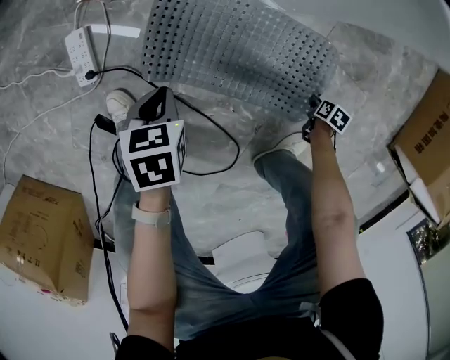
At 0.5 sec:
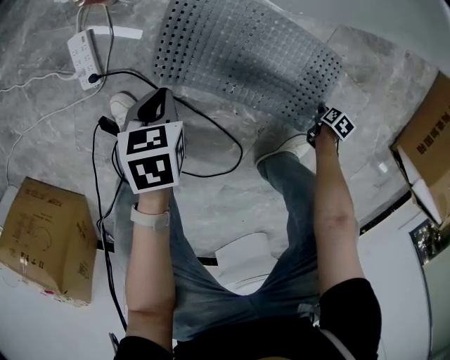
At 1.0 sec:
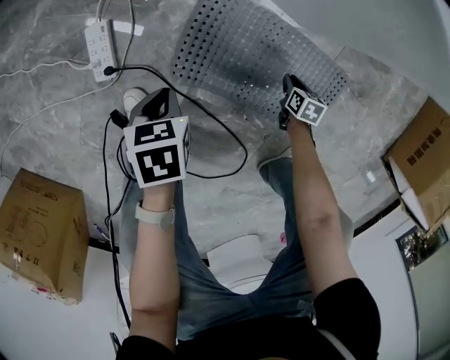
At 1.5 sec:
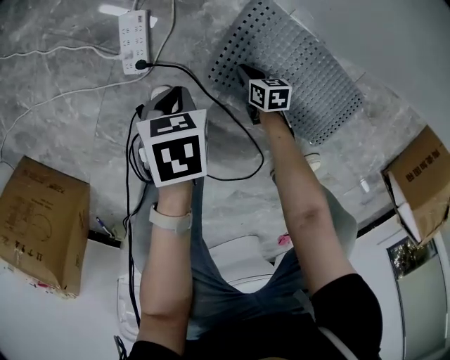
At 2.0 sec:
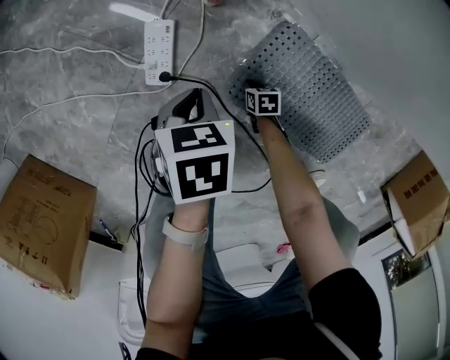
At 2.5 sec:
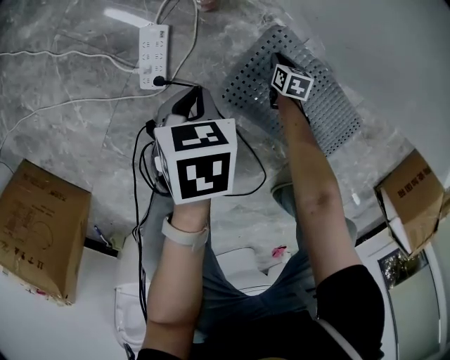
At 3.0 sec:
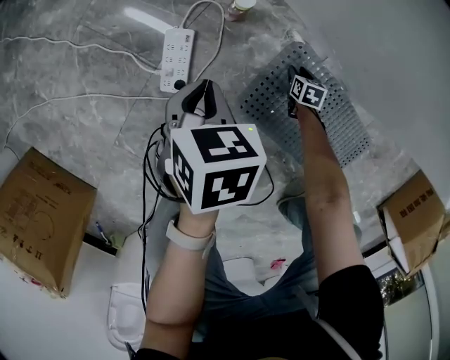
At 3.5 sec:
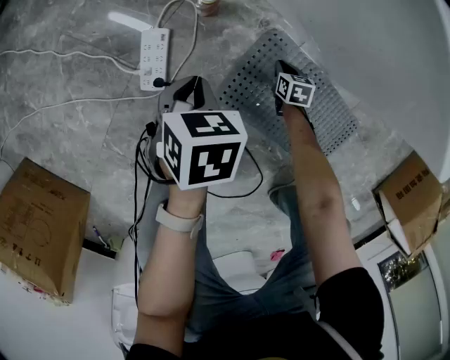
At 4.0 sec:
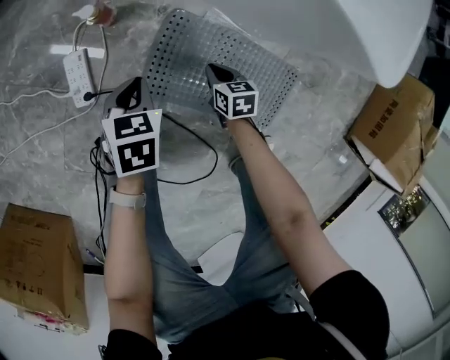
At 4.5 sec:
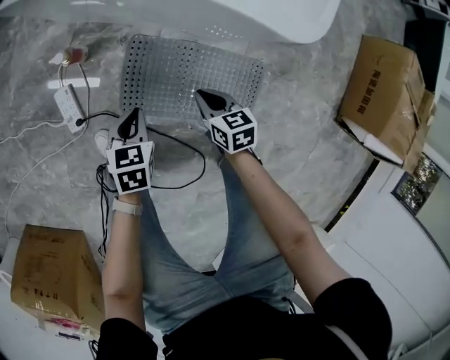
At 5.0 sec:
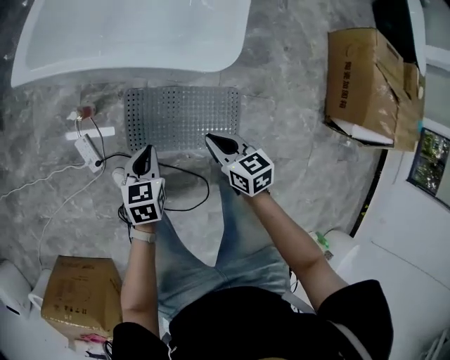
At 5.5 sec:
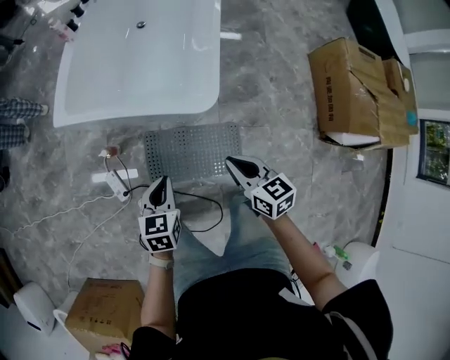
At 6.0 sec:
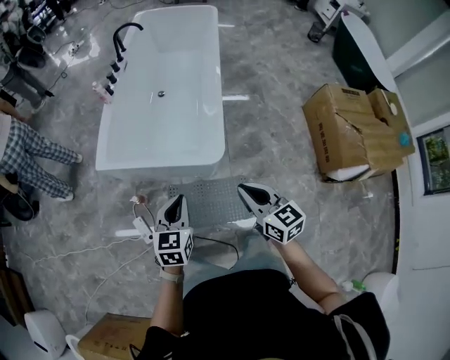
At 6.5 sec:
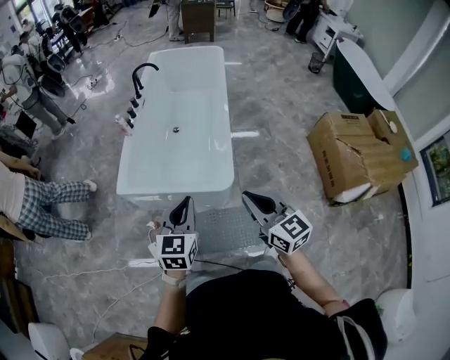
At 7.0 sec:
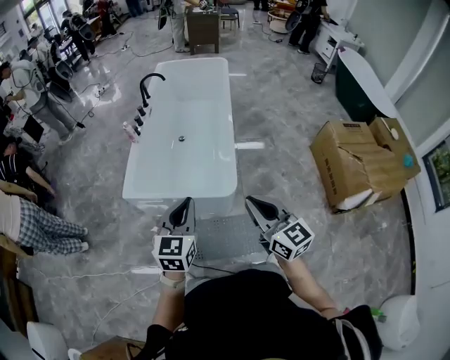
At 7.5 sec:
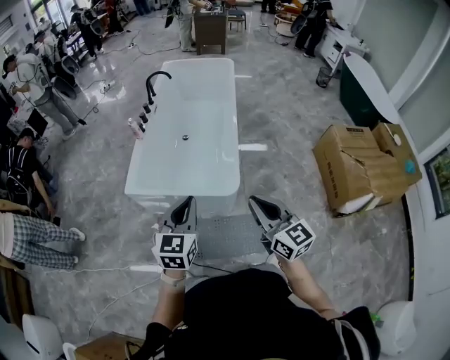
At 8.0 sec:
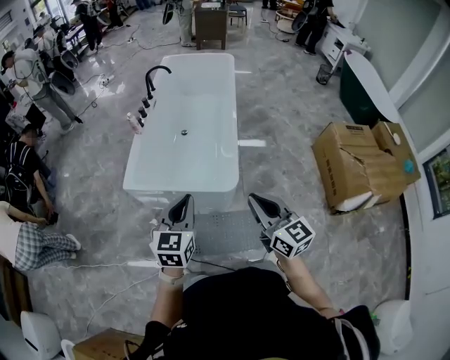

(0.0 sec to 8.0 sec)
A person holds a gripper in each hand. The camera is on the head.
0.0 sec - 2.0 sec: The right gripper ends up some 60 cm from where it was, and rolls counterclockwise, seen from behind, by some 40 degrees. The left gripper changes place by about 25 cm.
2.0 sec - 4.0 sec: The right gripper heads upward and to the right, covering roughly 25 cm, changes its angle by some 20 degrees, and opens, then closes again; the left gripper moves to the right, approximately 15 cm, and rotates about 20 degrees.
4.0 sec - 6.0 sec: Both grippers travel together upward, approximately 70 cm. The left gripper tips its fingers upward by about 30 degrees. The right gripper tips its fingers upward by approximately 40 degrees.
6.0 sec - 8.0 sec: Both grippers move upward, about 15 cm.

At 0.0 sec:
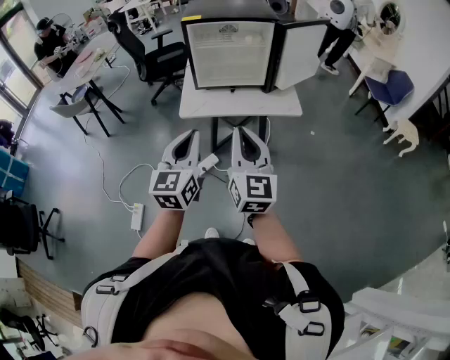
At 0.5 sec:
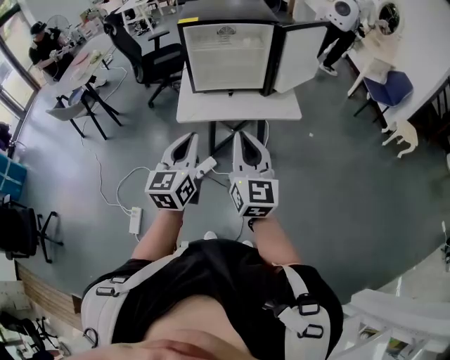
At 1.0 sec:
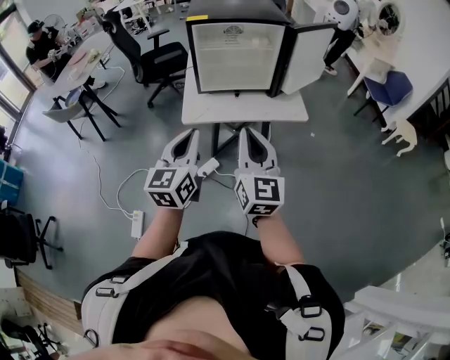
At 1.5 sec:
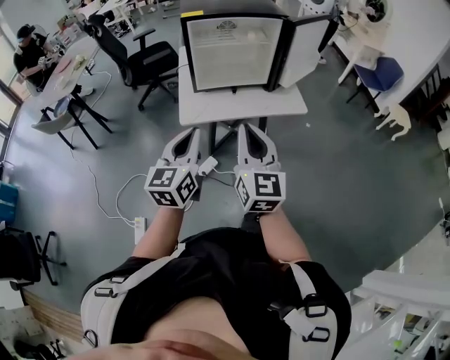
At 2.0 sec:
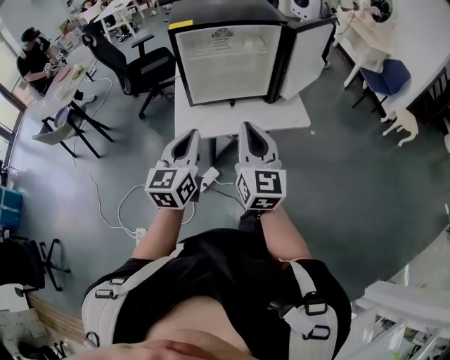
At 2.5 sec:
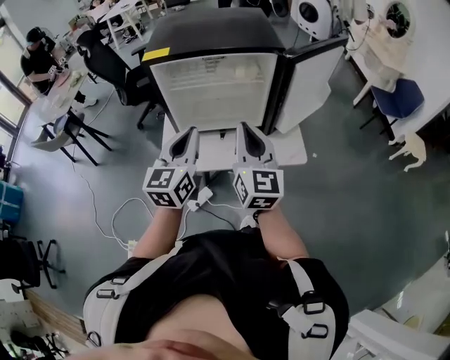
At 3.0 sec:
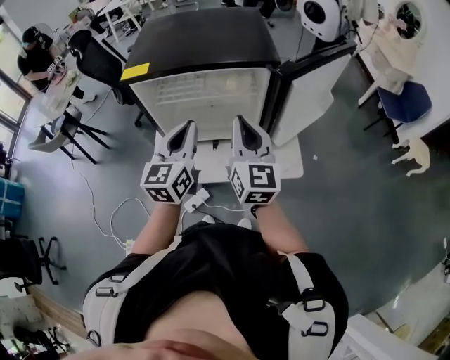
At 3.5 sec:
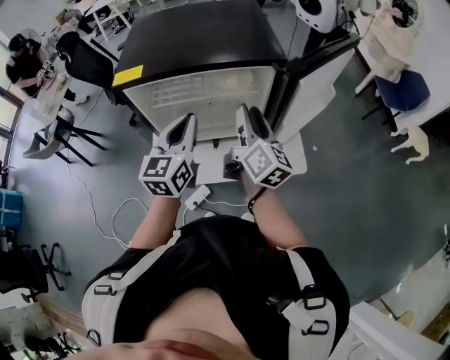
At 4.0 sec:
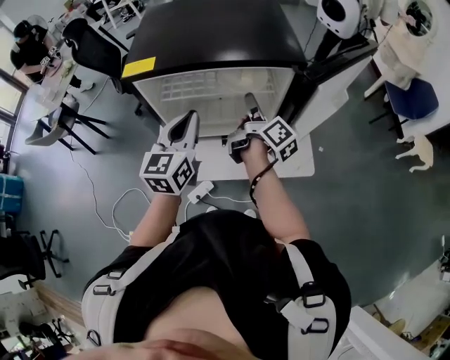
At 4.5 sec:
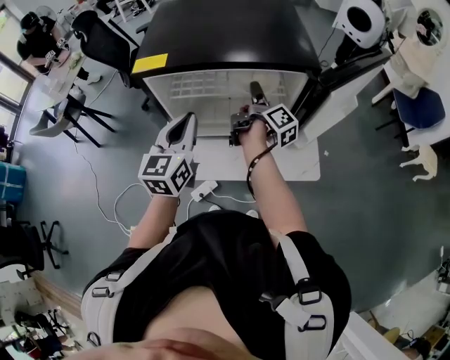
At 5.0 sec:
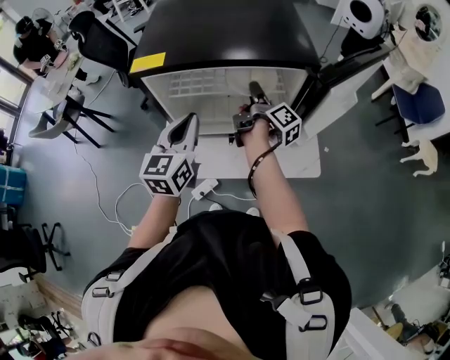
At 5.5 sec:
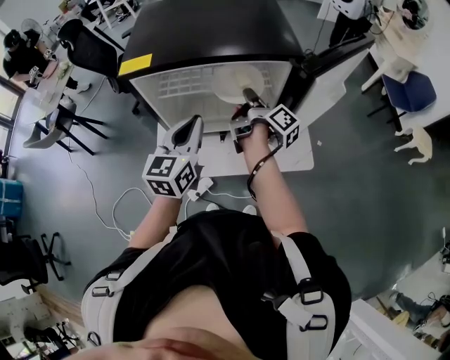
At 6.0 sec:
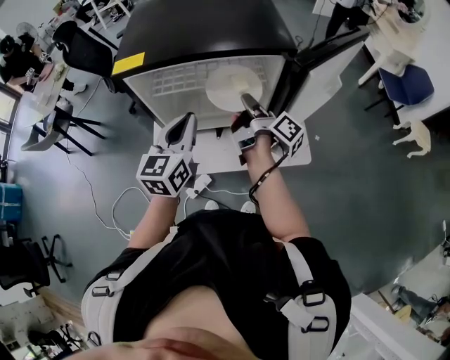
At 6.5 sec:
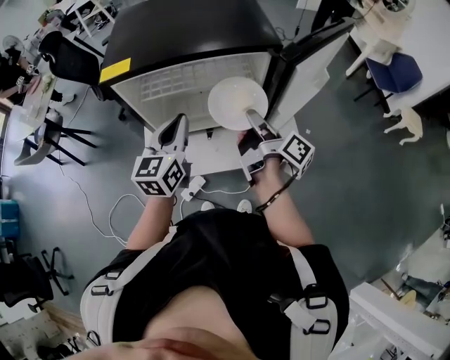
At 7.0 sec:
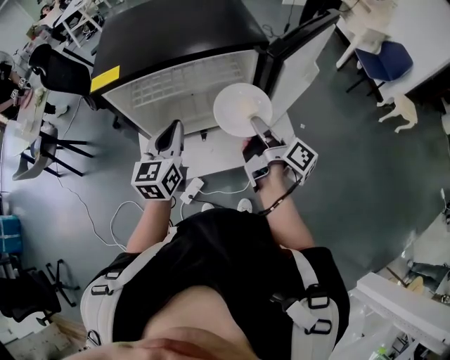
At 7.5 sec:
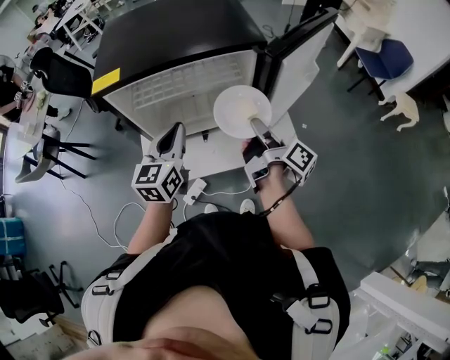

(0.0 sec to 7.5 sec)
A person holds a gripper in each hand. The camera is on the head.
0.0 sec - 2.0 sec: Both grippers move forward, about 15 cm.
2.0 sec - 4.0 sec: The two grippers go about 35 cm forward. The right gripper rotates around the line of its fingers by approximately 70 degrees, clockwise from behind, and opens its fingers.
4.0 sec - 5.5 sec: The right gripper closes its fingers.
5.5 sec - 7.5 sec: The right gripper is displaced backward and to the right by some 15 cm.

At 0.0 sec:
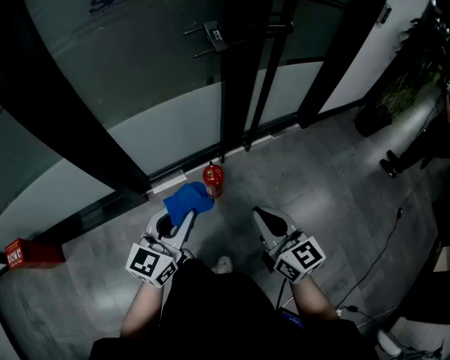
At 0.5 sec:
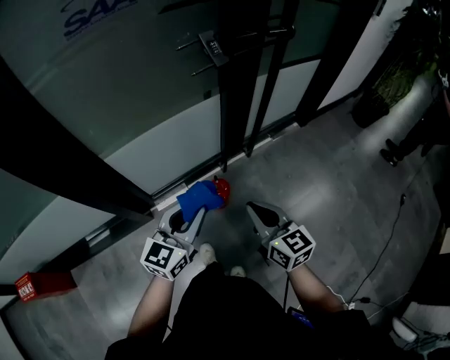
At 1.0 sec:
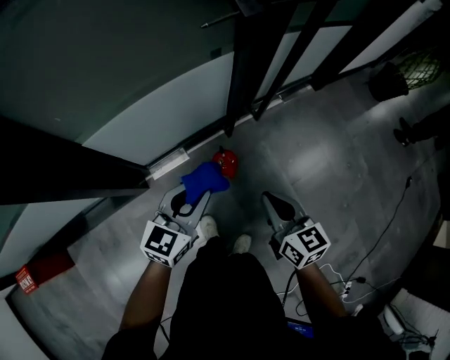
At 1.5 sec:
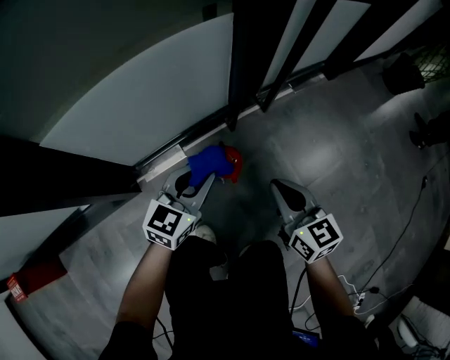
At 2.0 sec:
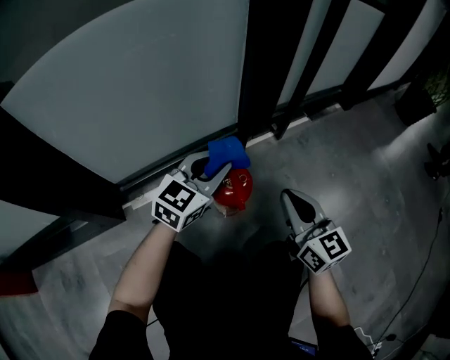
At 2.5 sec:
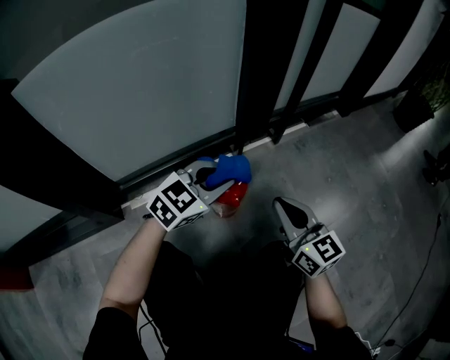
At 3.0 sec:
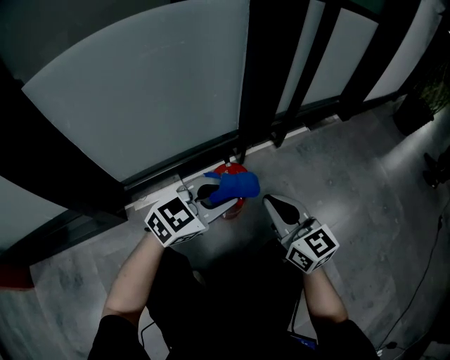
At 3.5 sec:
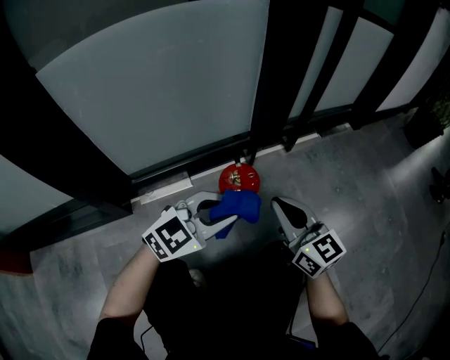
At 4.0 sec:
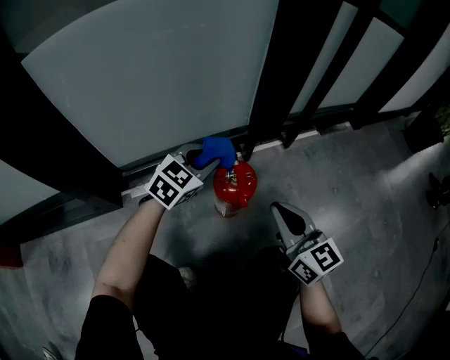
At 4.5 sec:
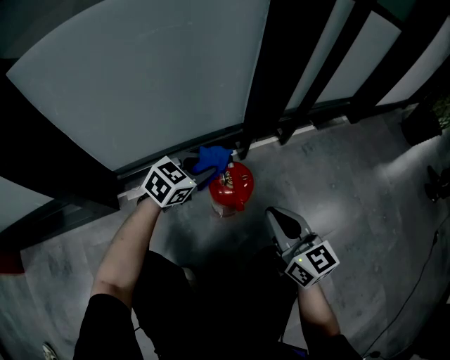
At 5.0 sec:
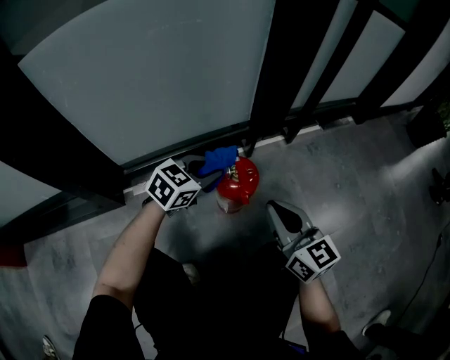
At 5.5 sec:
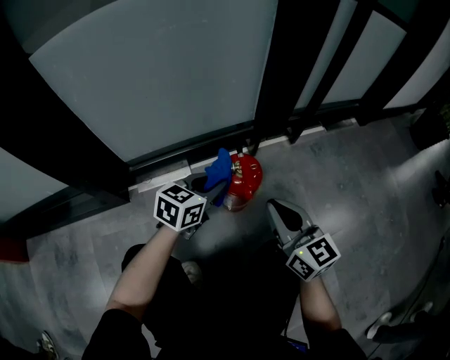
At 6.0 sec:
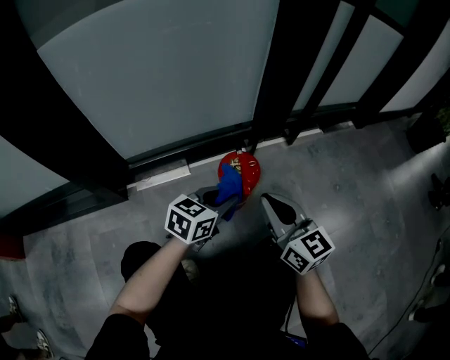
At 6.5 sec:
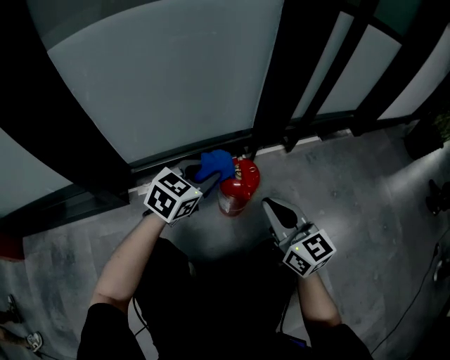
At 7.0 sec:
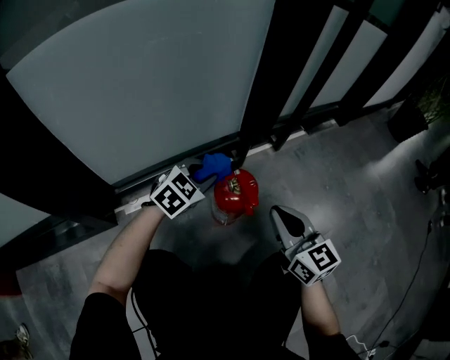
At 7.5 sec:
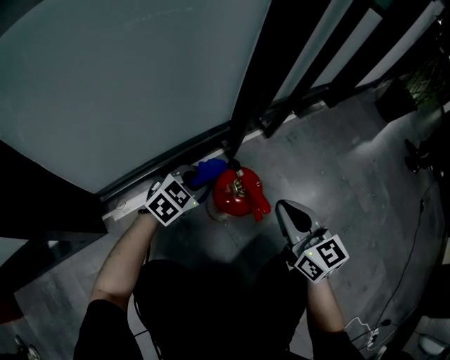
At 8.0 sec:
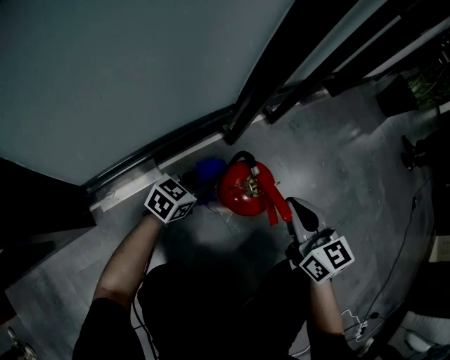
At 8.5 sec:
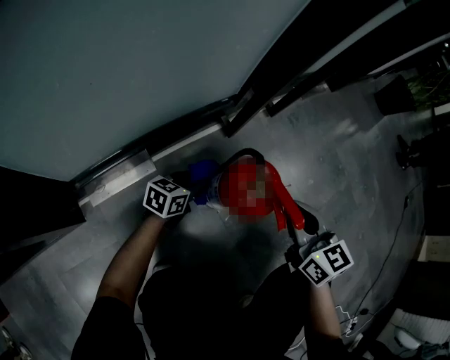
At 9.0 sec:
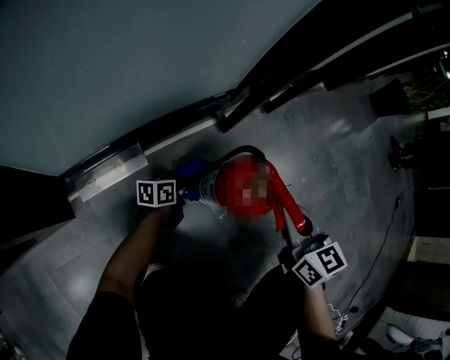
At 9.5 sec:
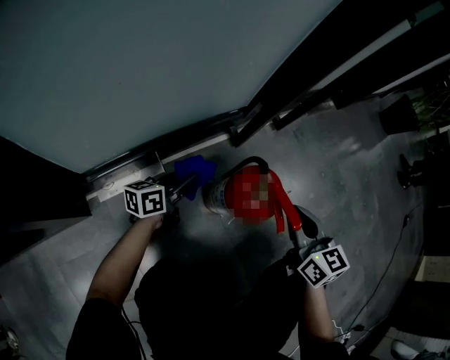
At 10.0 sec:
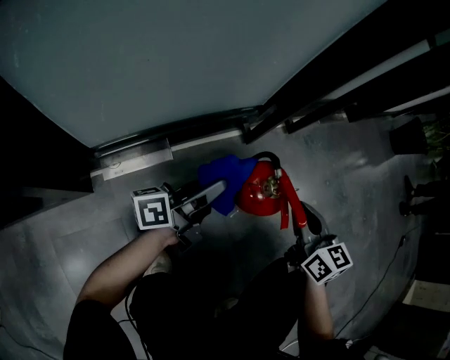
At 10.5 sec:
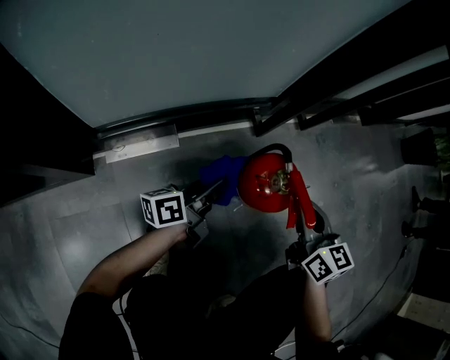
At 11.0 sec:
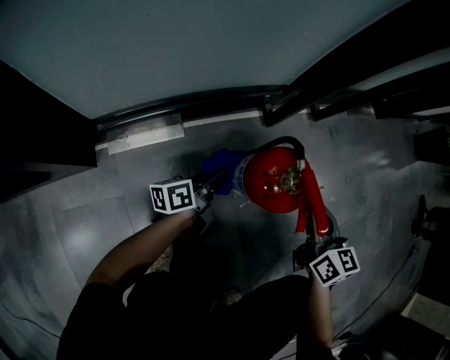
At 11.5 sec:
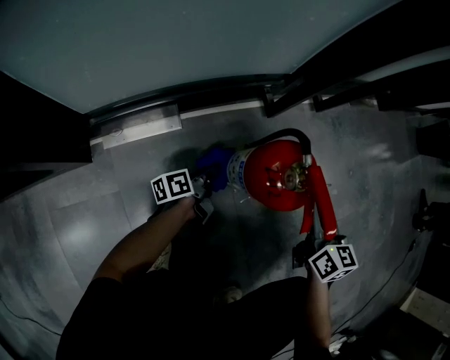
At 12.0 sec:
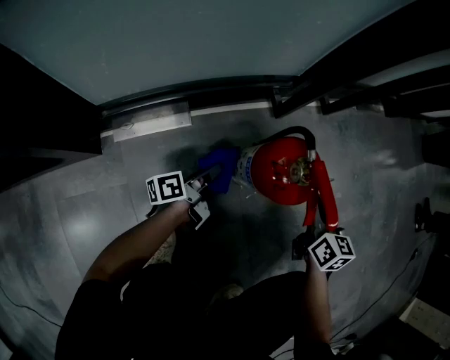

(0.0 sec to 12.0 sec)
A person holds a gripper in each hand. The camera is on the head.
0.0 sec - 2.0 sec: The two grippers go roughly 60 cm downward and forward. The left gripper turns by some 20 degrees.
2.0 sec - 4.0 sec: The left gripper goes approximately 5 cm downward, and travels backward and back again, some 15 cm each way.
4.0 sec - 6.0 sec: The left gripper is displaced backward and to the right by approximately 15 cm, and rotates about 30 degrees.
6.0 sec - 8.0 sec: The left gripper goes approximately 20 cm downward, forward and to the left, and swivels roughly 20 degrees. The right gripper is displaced downward and forward by approximately 10 cm, and swivels approximately 20 degrees.
8.0 sec - 10.0 sec: The left gripper shifts roughly 10 cm upward and backward, and tilts its fingers roughly 40 degrees upward.
10.0 sec - 12.0 sec: The left gripper goes some 20 cm downward, and rotates about 30 degrees. The right gripper is displaced downward and to the right by some 15 cm.
